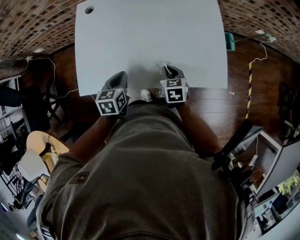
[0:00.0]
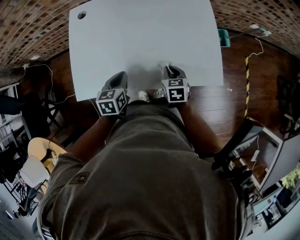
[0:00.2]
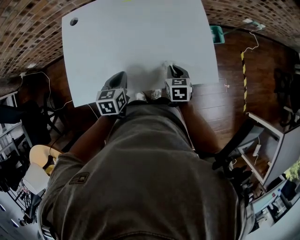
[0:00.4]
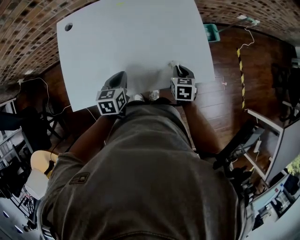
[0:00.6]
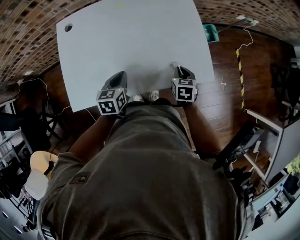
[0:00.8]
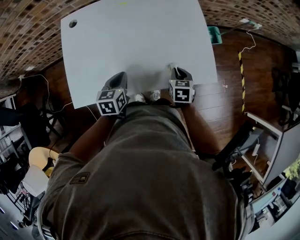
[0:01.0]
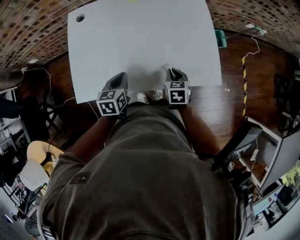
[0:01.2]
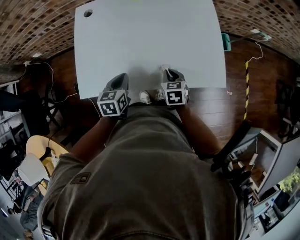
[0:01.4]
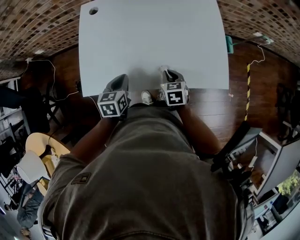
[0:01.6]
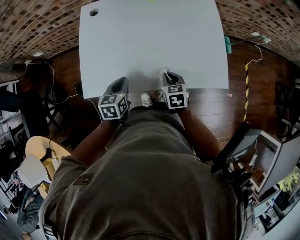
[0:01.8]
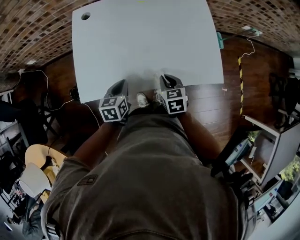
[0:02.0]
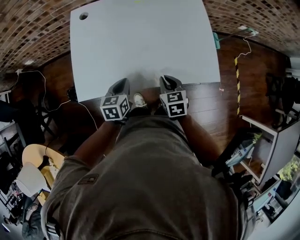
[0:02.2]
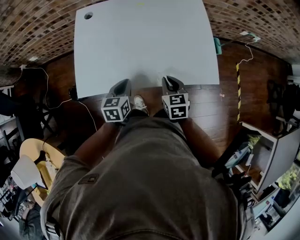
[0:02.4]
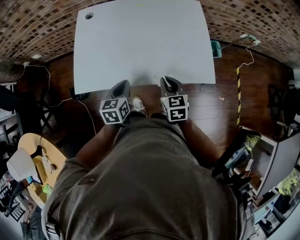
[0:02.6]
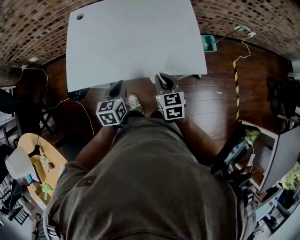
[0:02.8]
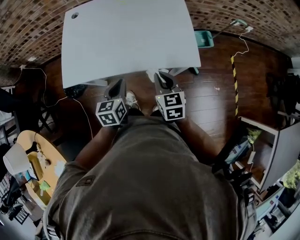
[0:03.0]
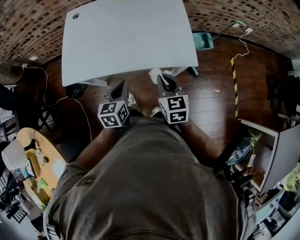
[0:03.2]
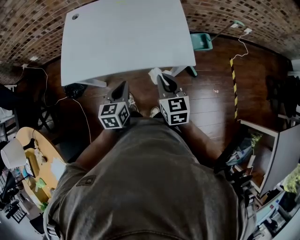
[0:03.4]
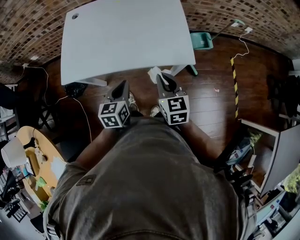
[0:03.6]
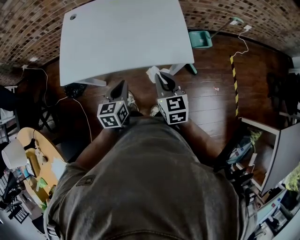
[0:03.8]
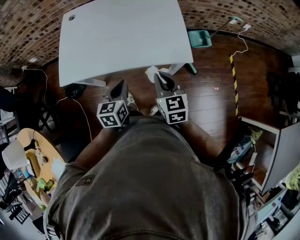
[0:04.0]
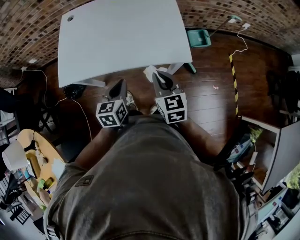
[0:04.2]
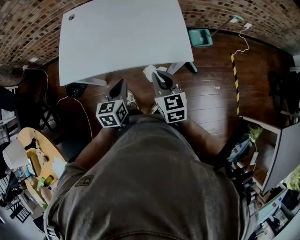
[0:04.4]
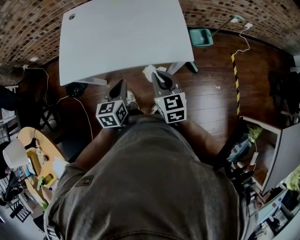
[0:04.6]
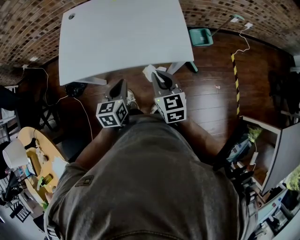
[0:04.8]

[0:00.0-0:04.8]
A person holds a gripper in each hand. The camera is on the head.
0:00.0 to 0:01.6: The right gripper moves approximately 15 cm to the right and comes back; the left gripper moves approximately 5 cm to the right and comes back.
0:01.6 to 0:03.2: The right gripper moves upward, backward and to the right, roughly 20 cm, and rotates roughly 20 degrees. Meanwhile the left gripper moves to the right and backward, approximately 20 cm.
0:03.2 to 0:04.8: There are only small adjustments of the grippers.

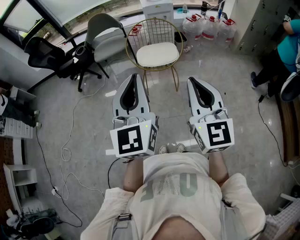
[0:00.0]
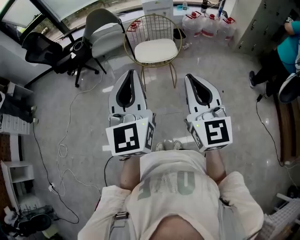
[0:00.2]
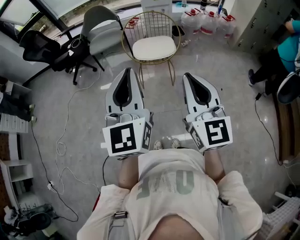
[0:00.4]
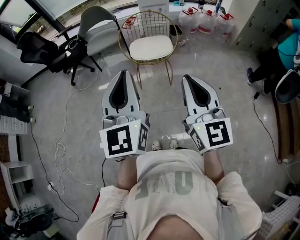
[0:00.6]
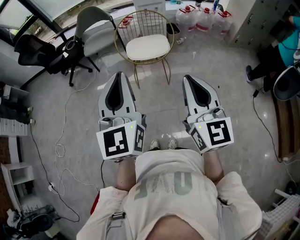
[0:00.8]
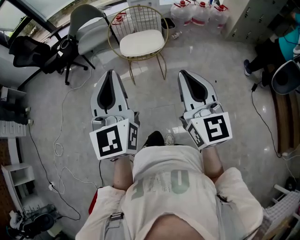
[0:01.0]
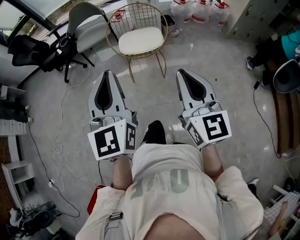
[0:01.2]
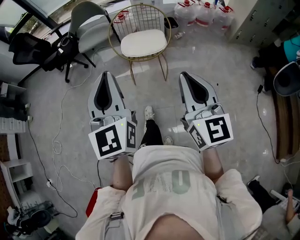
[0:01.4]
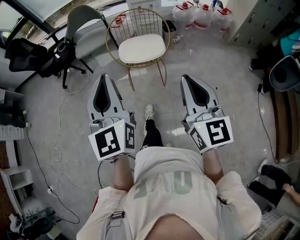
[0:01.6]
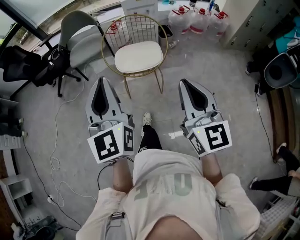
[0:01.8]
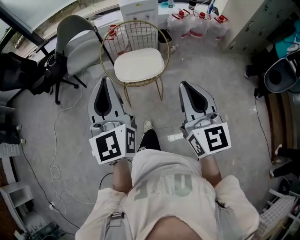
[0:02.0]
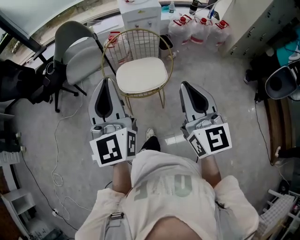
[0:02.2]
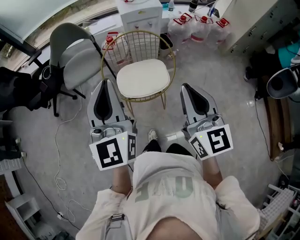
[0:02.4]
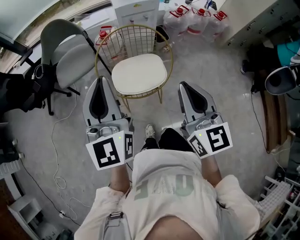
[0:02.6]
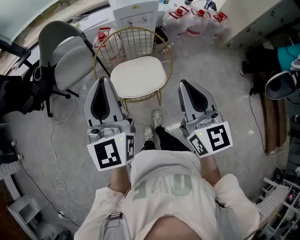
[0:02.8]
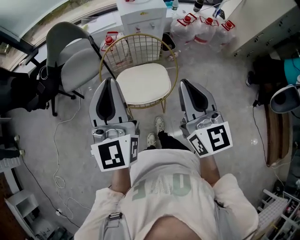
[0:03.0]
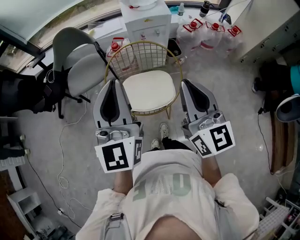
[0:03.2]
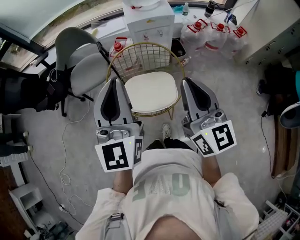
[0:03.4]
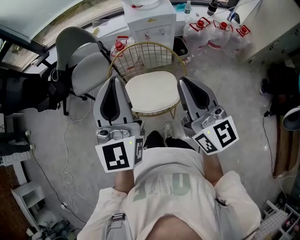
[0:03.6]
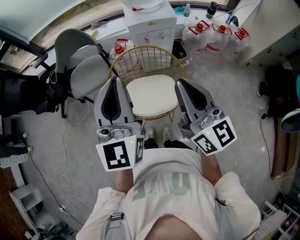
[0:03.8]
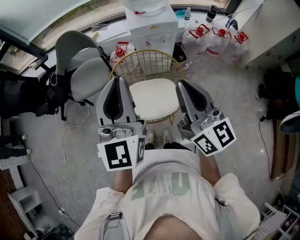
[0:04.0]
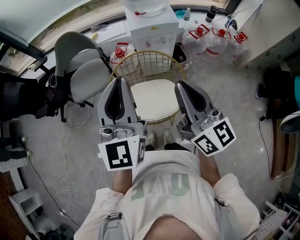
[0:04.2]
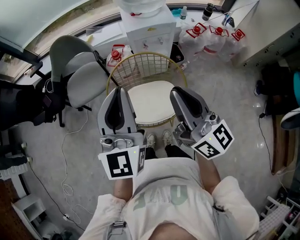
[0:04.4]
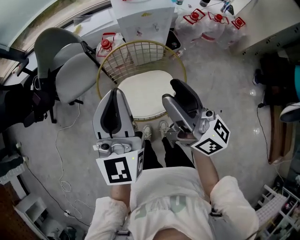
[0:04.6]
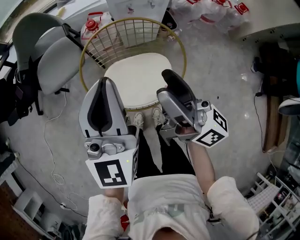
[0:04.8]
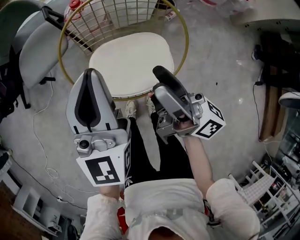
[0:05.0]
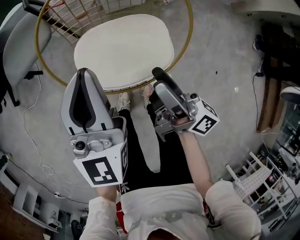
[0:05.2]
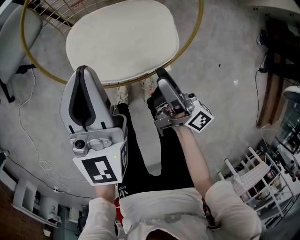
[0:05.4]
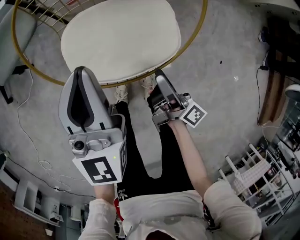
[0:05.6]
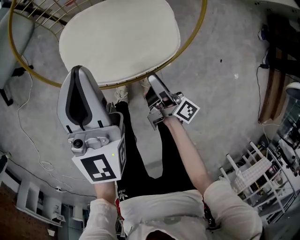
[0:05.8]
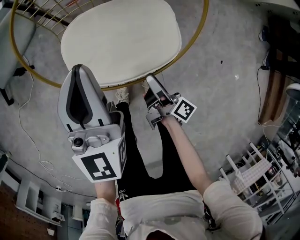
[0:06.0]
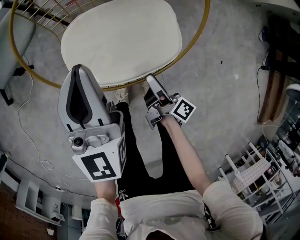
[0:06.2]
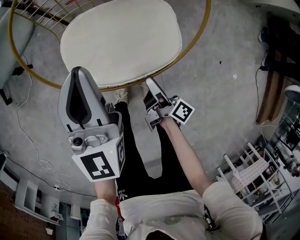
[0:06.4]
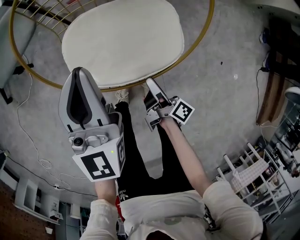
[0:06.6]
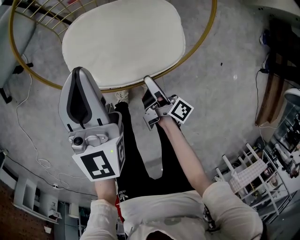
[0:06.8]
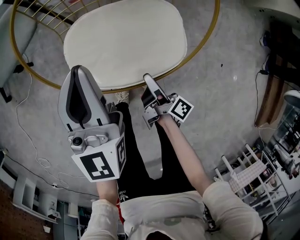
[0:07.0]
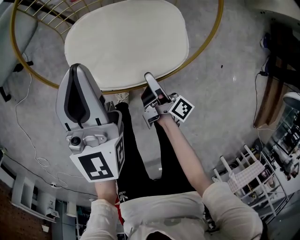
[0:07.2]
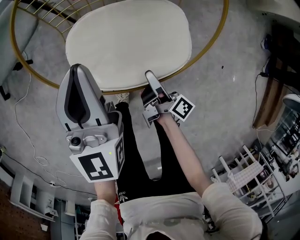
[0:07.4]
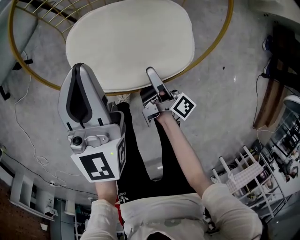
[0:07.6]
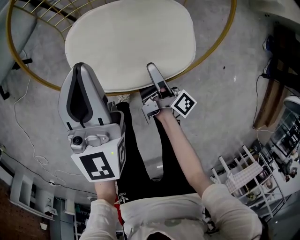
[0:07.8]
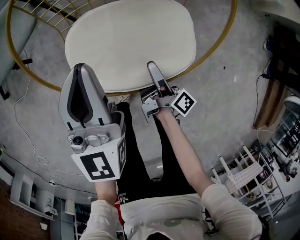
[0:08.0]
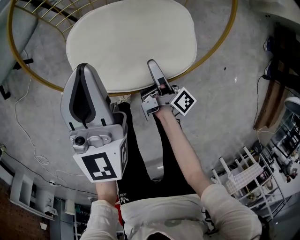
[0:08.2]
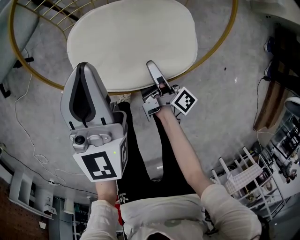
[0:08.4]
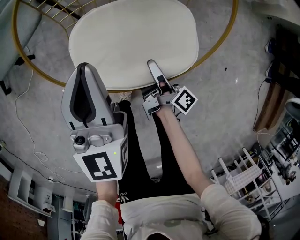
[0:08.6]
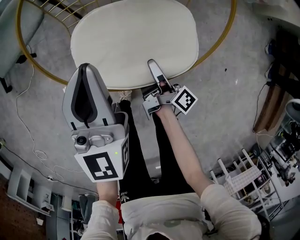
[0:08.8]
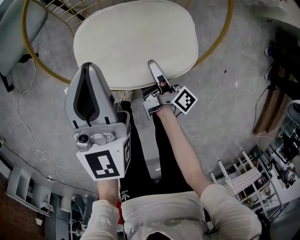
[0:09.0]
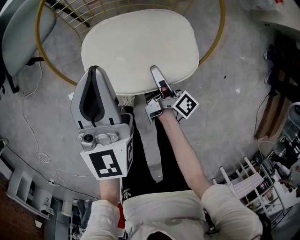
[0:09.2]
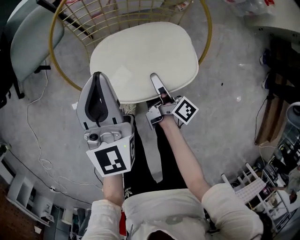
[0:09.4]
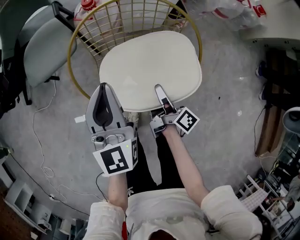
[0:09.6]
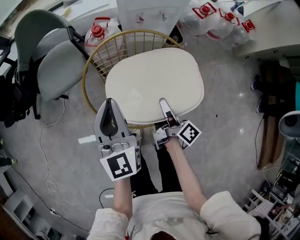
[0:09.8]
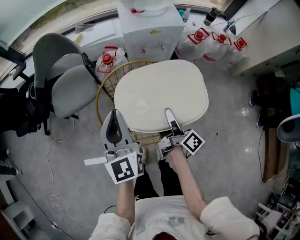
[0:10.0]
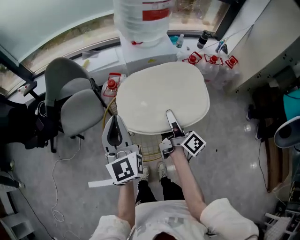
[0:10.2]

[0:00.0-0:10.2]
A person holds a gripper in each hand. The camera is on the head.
0:00.0 to 0:01.4: The left gripper is displaced forward by approximately 5 cm; the right gripper moves to the right and forward, about 10 cm.
0:01.4 to 0:03.0: The two grippers travel together, forward, approximately 40 cm.
0:03.0 to 0:04.4: The grippers both shift forward by approximately 10 cm. The right gripper changes its angle by approximately 30 degrees.
0:04.4 to 0:05.8: The two grippers go roughly 50 cm downward. The right gripper rotates around the line of its fingers by approximately 60 degrees, clockwise from behind, and opens.
0:05.8 to 0:07.2: The grippers stay close to where they were, moving slightly.
0:07.2 to 0:08.8: The right gripper closes its fingers.
0:08.8 to 0:10.2: Both grippers travel together upward, some 35 cm. The right gripper changes its angle by approximately 30 degrees.

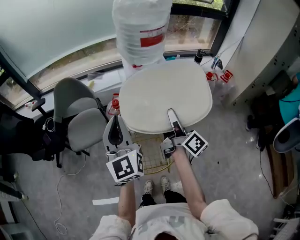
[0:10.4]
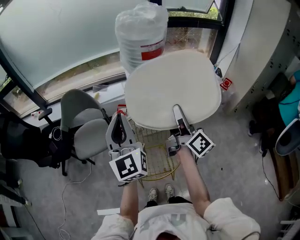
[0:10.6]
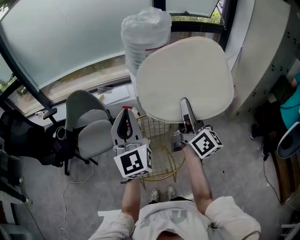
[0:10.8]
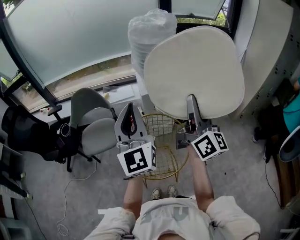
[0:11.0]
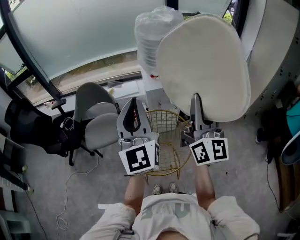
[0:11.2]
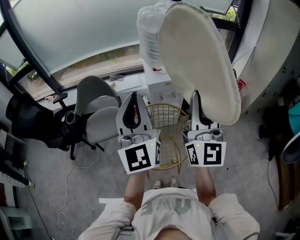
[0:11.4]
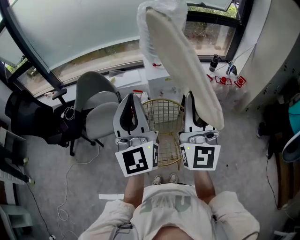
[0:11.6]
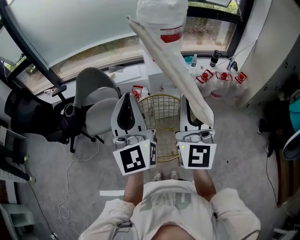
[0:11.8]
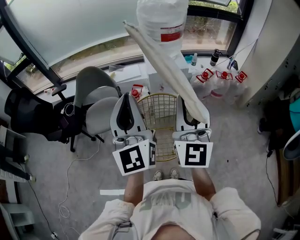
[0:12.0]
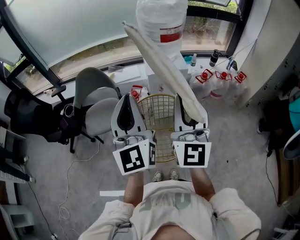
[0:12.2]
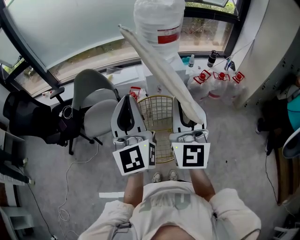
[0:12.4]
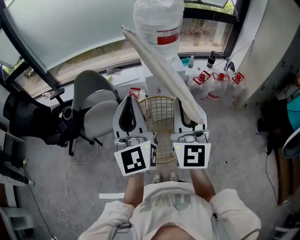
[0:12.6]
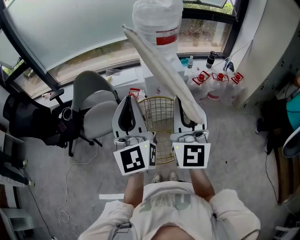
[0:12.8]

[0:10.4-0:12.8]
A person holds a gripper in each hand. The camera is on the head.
0:10.4 to 0:11.6: The left gripper moves upward and backward, some 15 cm, while the right gripper goes roughly 25 cm upward and backward, and rotates around the line of its fingers by approximately 80 degrees, counterclockwise from behind.
0:11.6 to 0:12.8: The grippers stay close to where they were, moving slightly.

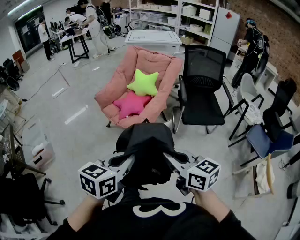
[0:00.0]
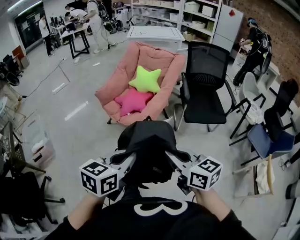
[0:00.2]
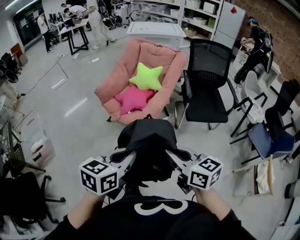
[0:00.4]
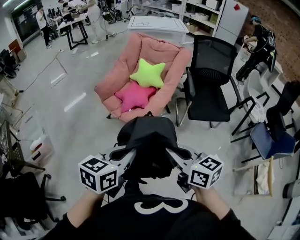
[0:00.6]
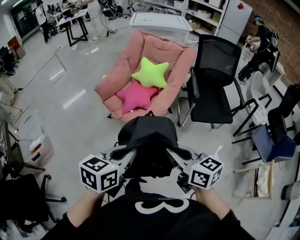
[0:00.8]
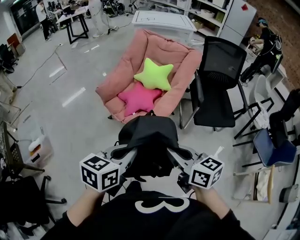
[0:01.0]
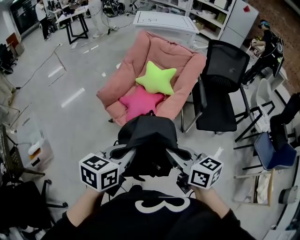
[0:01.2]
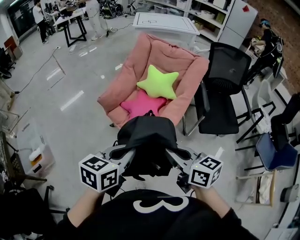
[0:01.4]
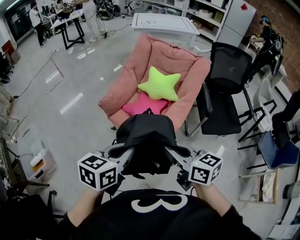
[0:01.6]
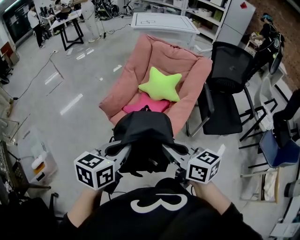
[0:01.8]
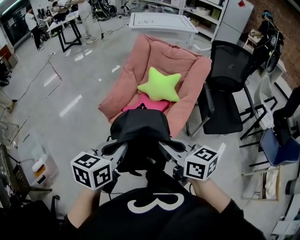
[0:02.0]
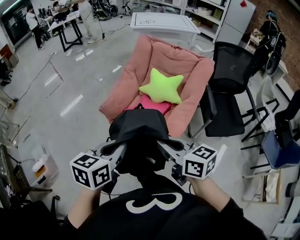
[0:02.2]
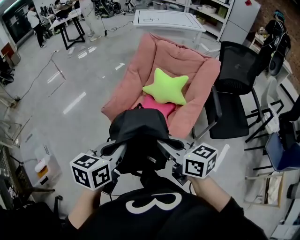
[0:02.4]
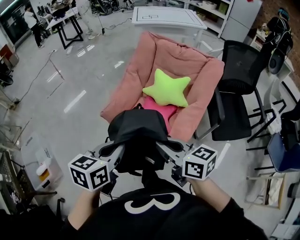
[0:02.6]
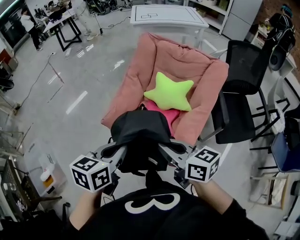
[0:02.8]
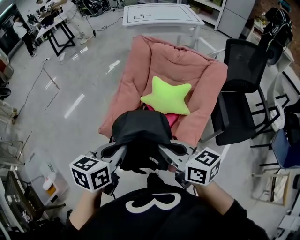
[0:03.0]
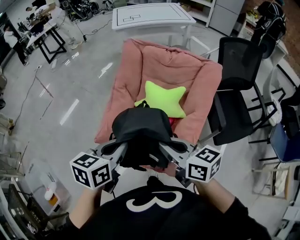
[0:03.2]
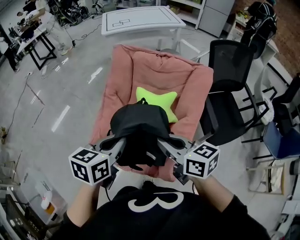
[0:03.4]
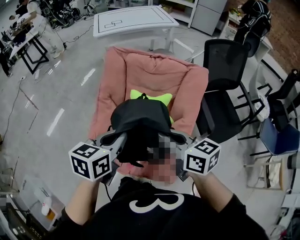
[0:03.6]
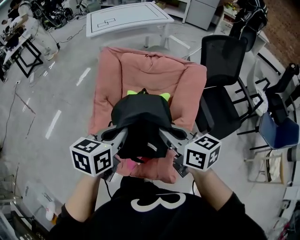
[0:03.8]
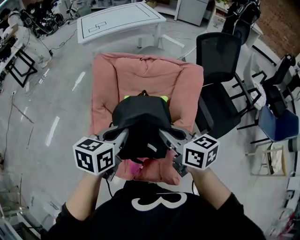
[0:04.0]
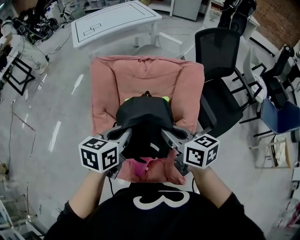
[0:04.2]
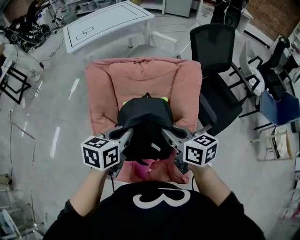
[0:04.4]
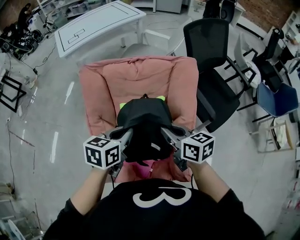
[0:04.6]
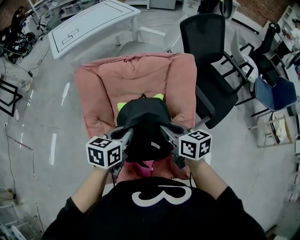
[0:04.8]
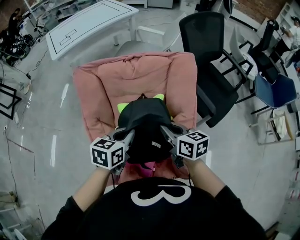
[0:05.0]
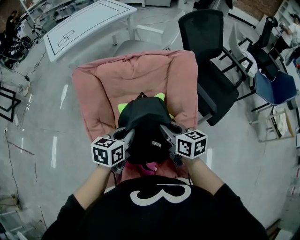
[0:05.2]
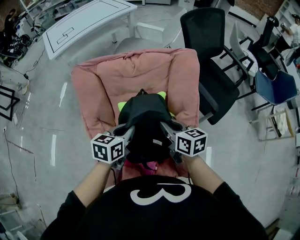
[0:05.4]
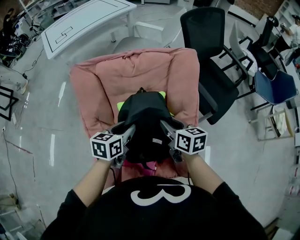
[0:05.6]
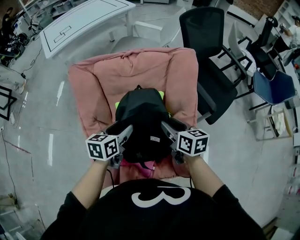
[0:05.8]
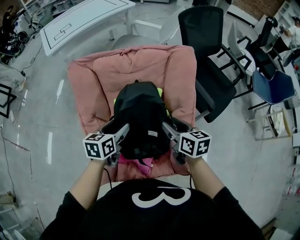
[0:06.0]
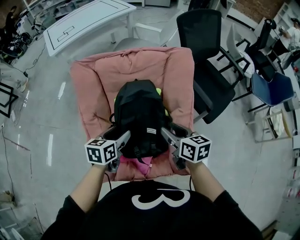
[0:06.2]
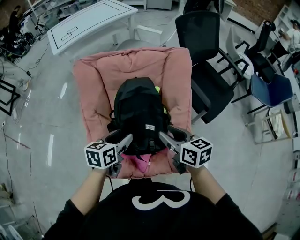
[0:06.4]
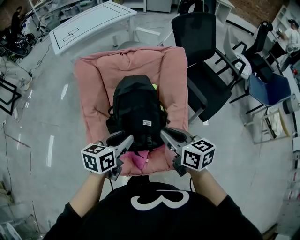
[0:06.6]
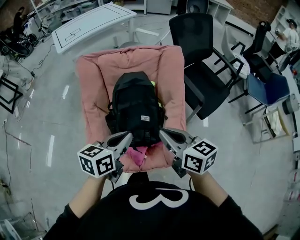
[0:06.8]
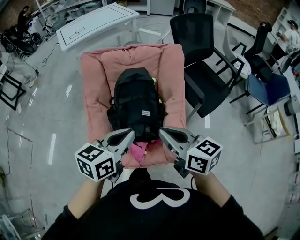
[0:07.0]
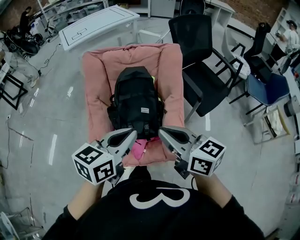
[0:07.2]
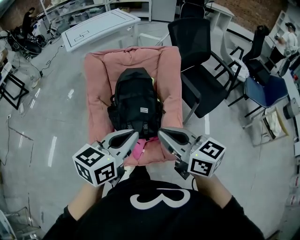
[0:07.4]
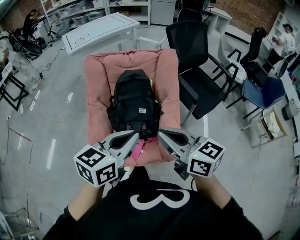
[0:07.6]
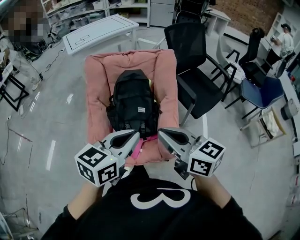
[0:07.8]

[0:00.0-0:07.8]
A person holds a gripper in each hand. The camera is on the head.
0:00.0 to 0:01.6: Both grippers move forward and to the left, roughly 40 cm.
0:01.6 to 0:03.2: The two grippers go roughly 35 cm forward.
0:03.2 to 0:04.6: The left gripper moves some 25 cm, and rotates approximately 30 degrees; the right gripper changes place by about 20 cm, and rotates approximately 30 degrees.
0:04.6 to 0:06.2: Both grippers move downward, some 10 cm. The right gripper opens; the left gripper opens.
0:06.2 to 0:07.8: The left gripper goes approximately 40 cm backward, upward and to the right, swivels about 30 degrees, and closes; the right gripper goes about 35 cm backward and upward, changes its angle by about 30 degrees, and closes.
